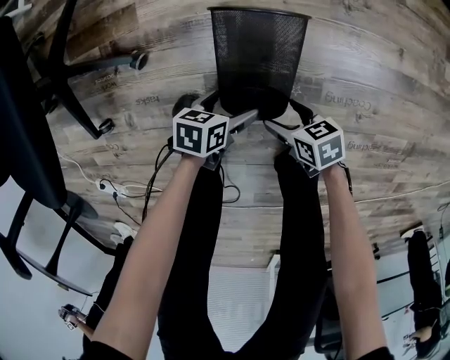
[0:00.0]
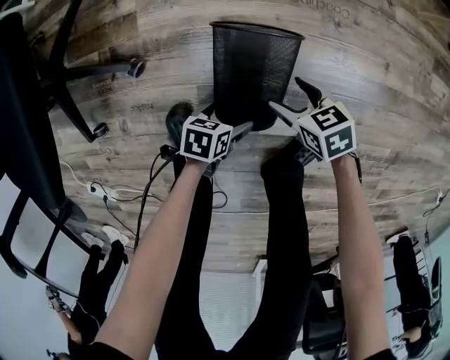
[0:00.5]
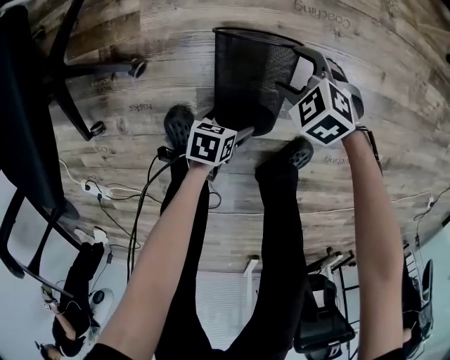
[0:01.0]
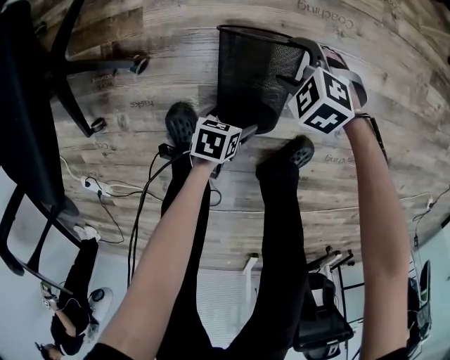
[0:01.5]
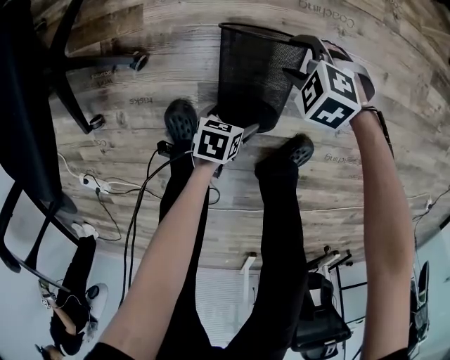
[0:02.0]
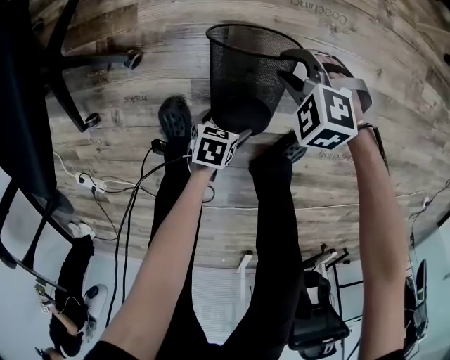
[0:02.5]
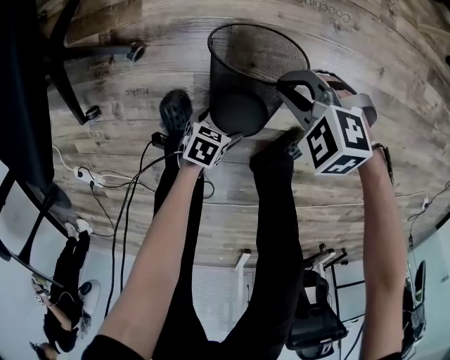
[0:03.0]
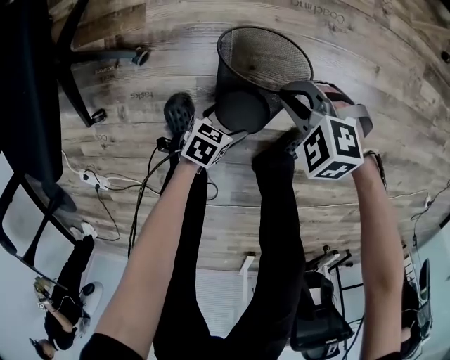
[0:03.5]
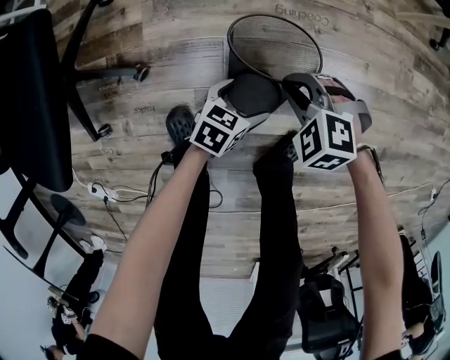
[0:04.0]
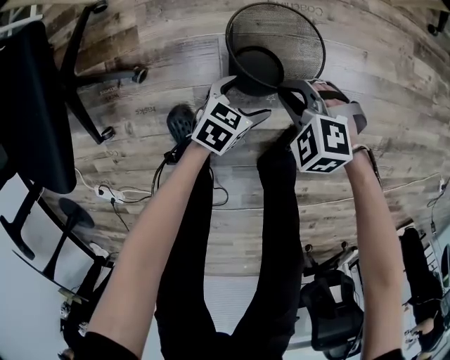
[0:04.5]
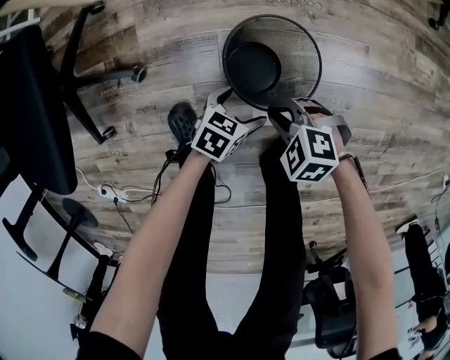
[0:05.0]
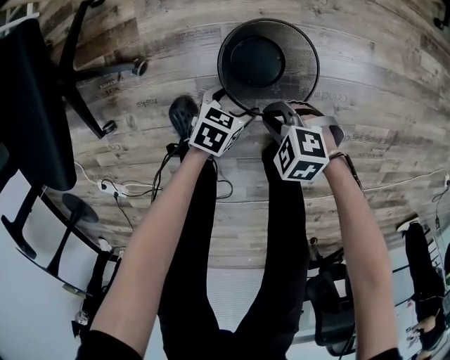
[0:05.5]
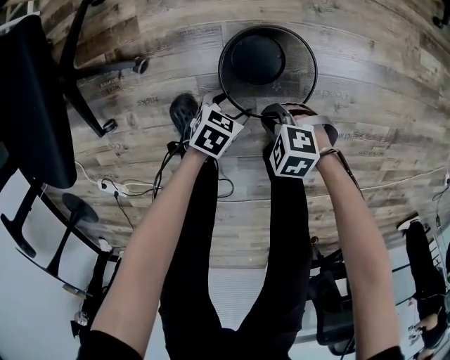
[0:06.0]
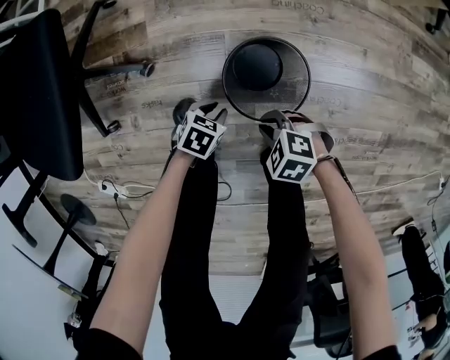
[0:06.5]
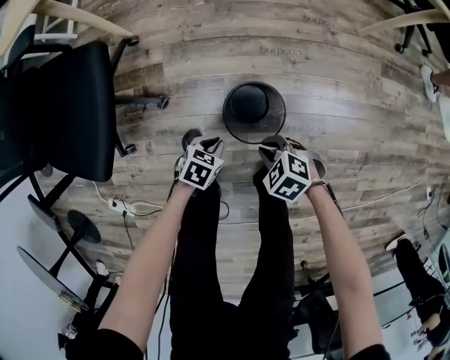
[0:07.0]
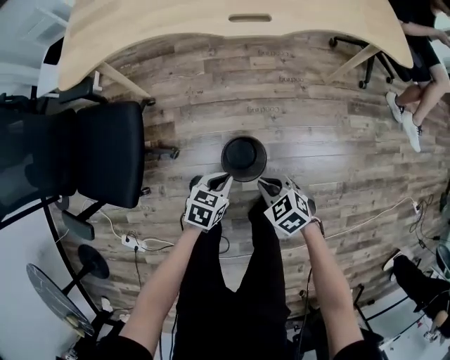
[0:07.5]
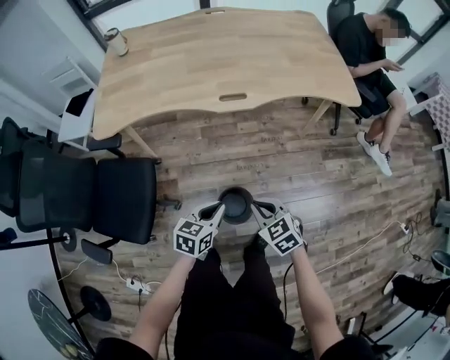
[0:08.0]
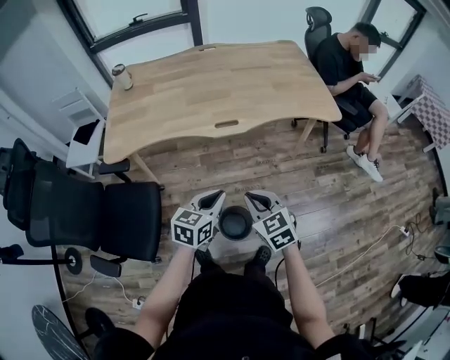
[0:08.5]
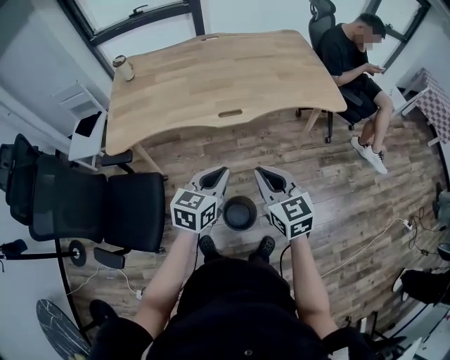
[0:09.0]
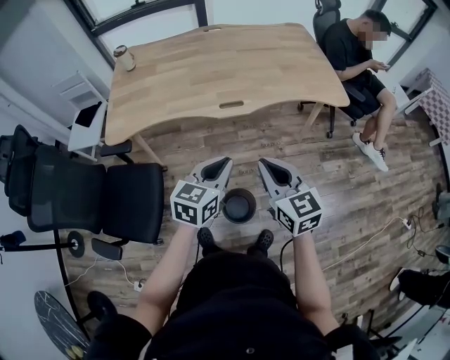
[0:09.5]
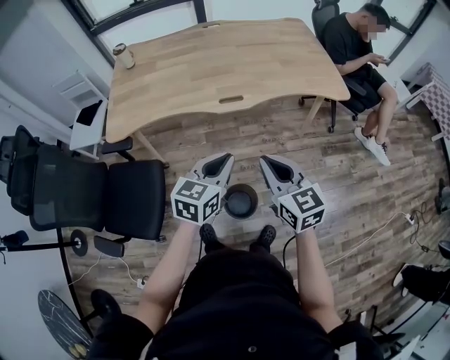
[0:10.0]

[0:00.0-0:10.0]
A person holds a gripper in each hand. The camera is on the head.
0:00.0 to 0:02.0: The right gripper moves roughly 20 cm, and rotates around the line of its fingers by roughly 70 degrees, counterclockwise from behind.
0:02.0 to 0:04.0: The left gripper moves about 15 cm, and turns by some 30 degrees; the right gripper is displaced upward by approximately 10 cm, and closes.
0:04.0 to 0:06.0: The right gripper changes place by roughly 20 cm, and turns by roughly 20 degrees. Meanwhile the left gripper changes place by about 10 cm, and closes its fingers.
0:06.0 to 0:08.0: Both grippers travel together upward, approximately 60 cm. The right gripper swivels roughly 50 degrees. Meanwhile the left gripper rotates approximately 30 degrees, and closes up.
0:08.0 to 0:10.0: The grippers both shift upward by some 20 cm. The right gripper rotates some 30 degrees.

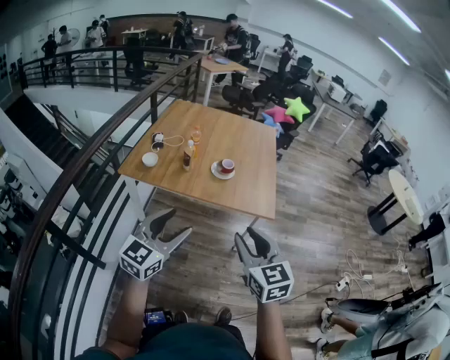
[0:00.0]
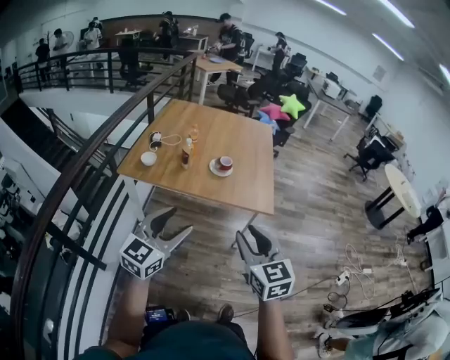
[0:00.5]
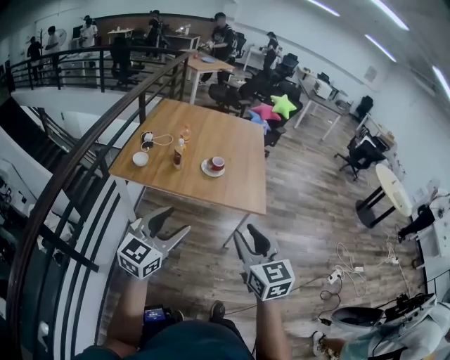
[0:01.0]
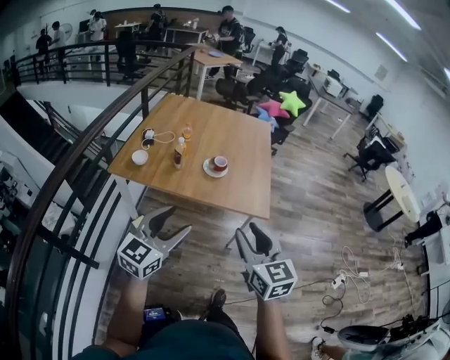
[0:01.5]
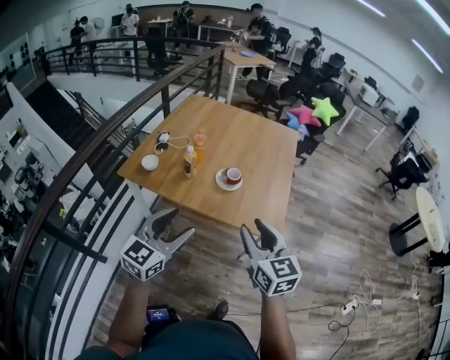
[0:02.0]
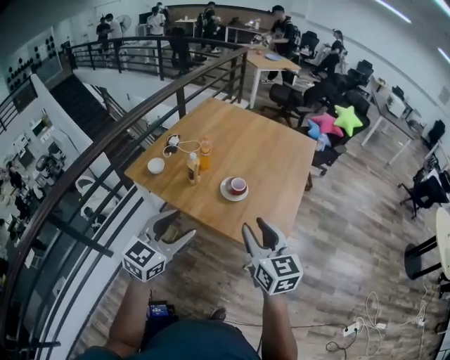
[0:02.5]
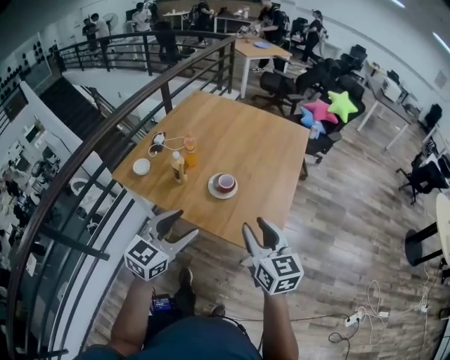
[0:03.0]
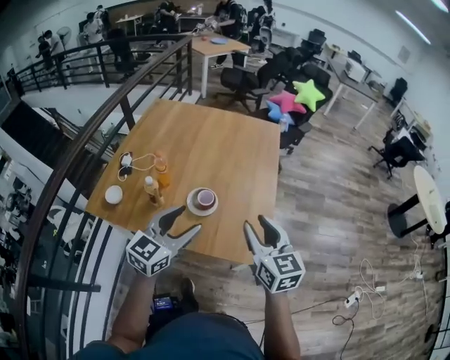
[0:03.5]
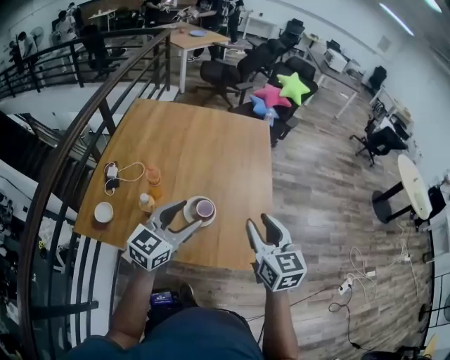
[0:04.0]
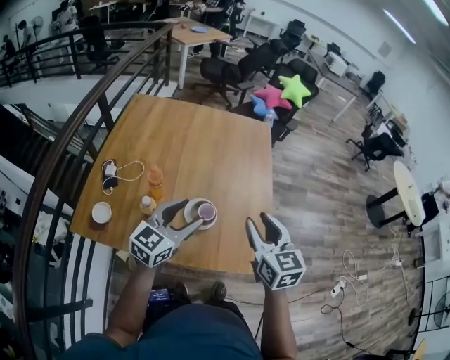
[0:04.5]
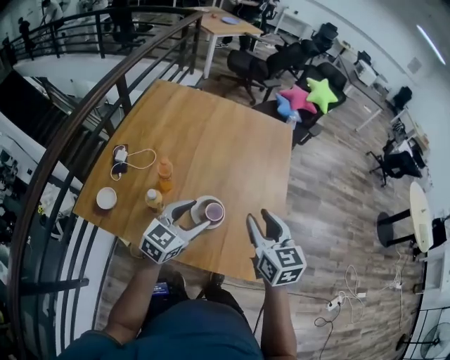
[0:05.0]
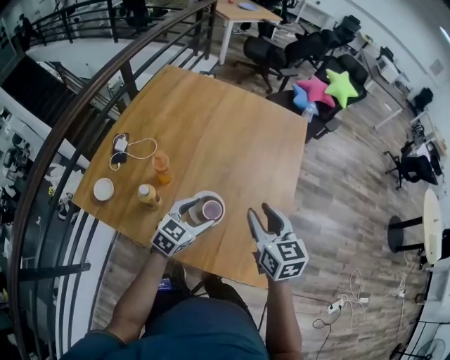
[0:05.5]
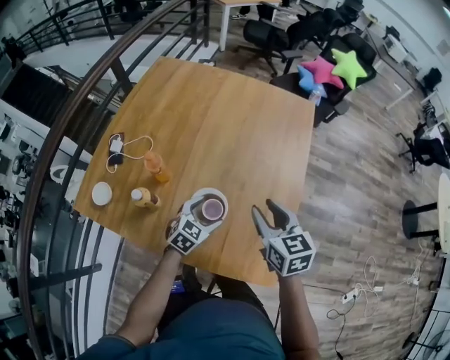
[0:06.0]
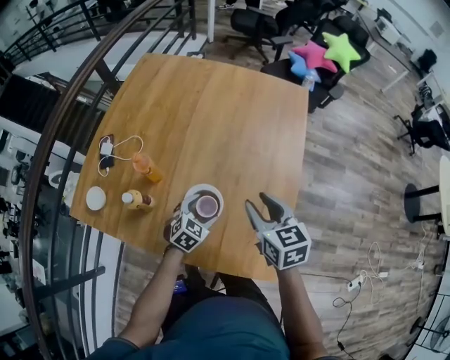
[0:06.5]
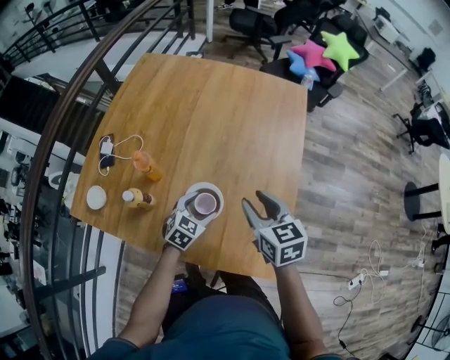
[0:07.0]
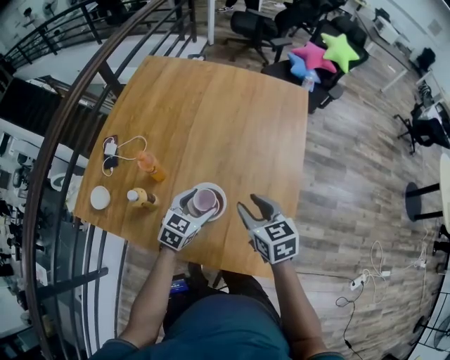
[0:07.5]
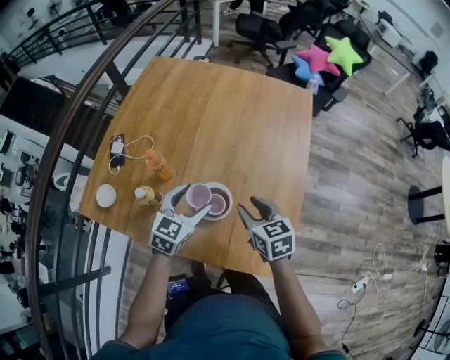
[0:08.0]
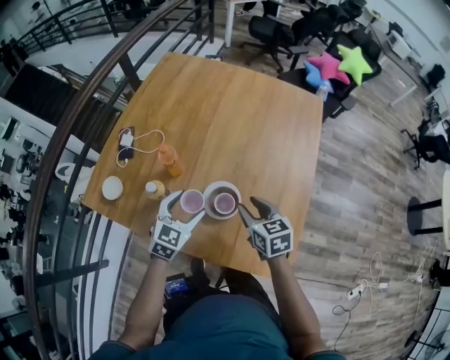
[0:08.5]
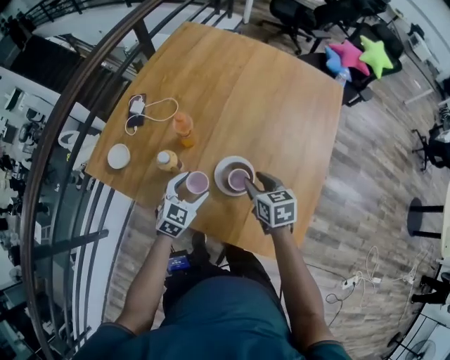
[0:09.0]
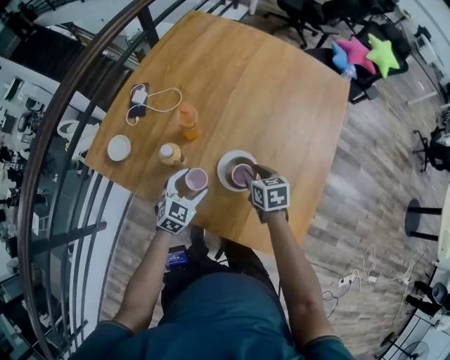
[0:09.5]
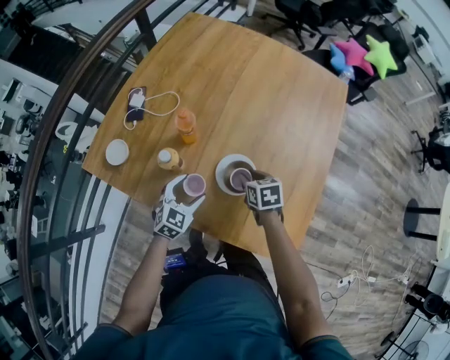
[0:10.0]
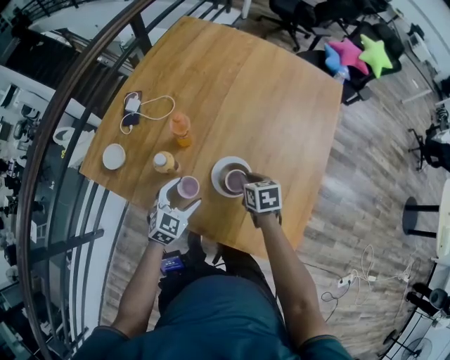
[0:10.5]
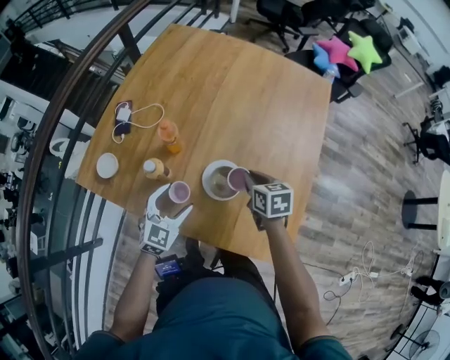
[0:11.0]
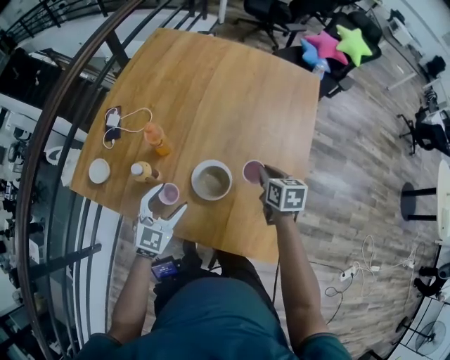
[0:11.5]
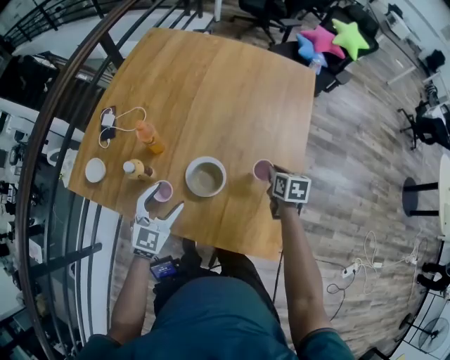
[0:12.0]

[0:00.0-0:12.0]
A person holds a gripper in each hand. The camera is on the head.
0:00.0 to 0:02.0: Both grippers travel together forward, approximately 20 cm.
0:02.0 to 0:04.0: The left gripper moves about 35 cm, while the right gripper shifts by about 30 cm.
0:04.0 to 0:06.0: The left gripper travels downward and forward by some 30 cm, and points its fingers about 30 degrees further downward, while the right gripper moves forward and downward, approximately 20 cm, and rotates approximately 20 degrees.
0:06.0 to 0:08.0: The left gripper goes roughly 10 cm upward and to the left, while the right gripper shifts roughly 5 cm downward.
0:08.0 to 0:10.0: Both grippers travel together downward and to the left, approximately 15 cm.
0:10.0 to 0:12.0: The right gripper shifts some 20 cm to the right, swivels about 20 degrees, and closes. The left gripper is displaced upward by roughly 10 cm.

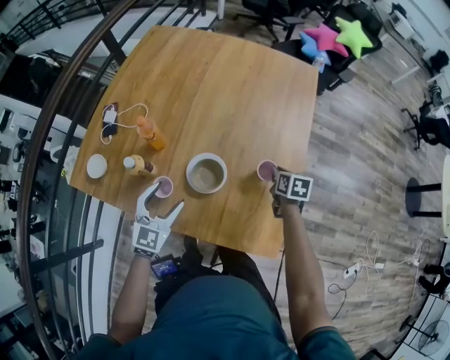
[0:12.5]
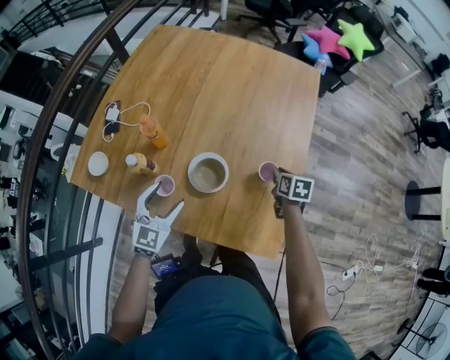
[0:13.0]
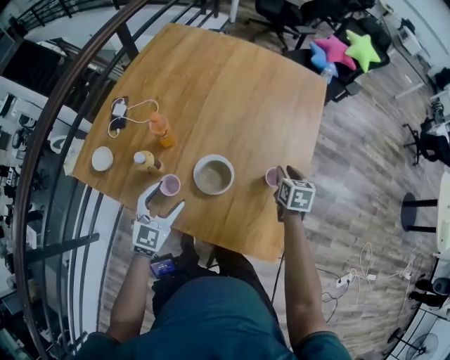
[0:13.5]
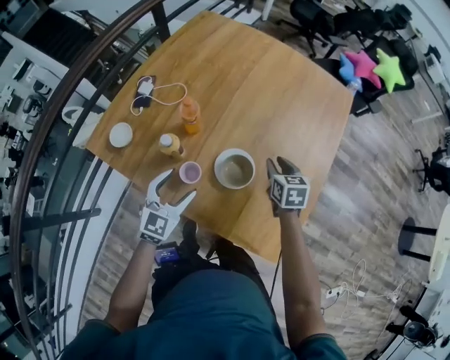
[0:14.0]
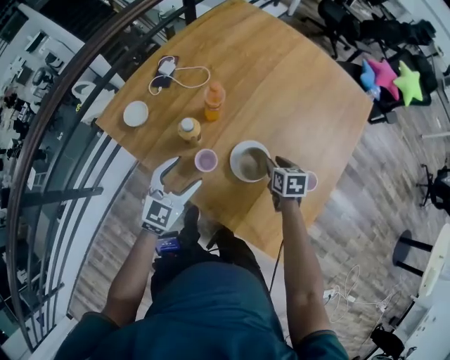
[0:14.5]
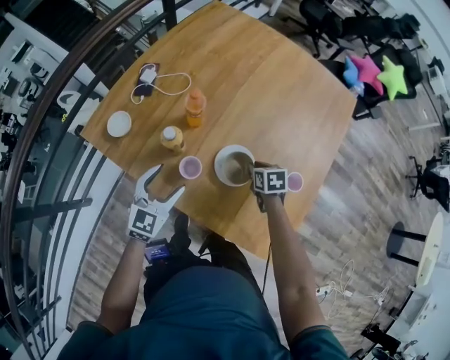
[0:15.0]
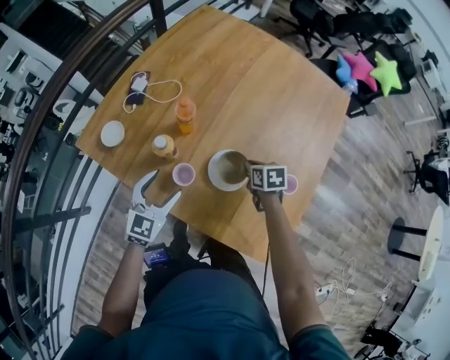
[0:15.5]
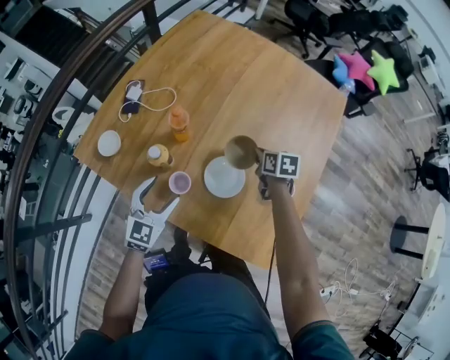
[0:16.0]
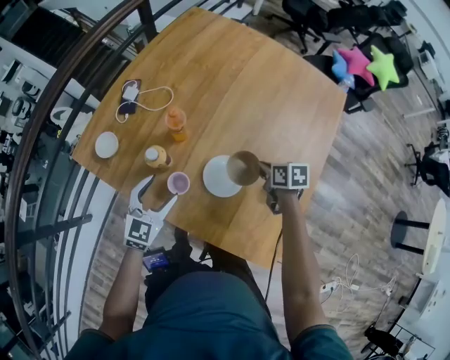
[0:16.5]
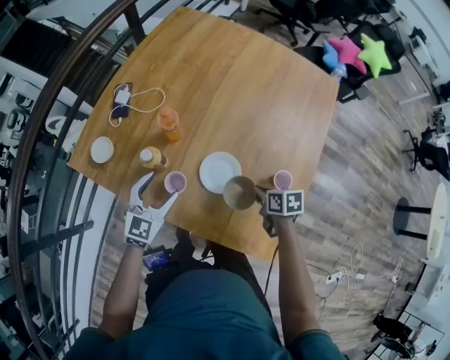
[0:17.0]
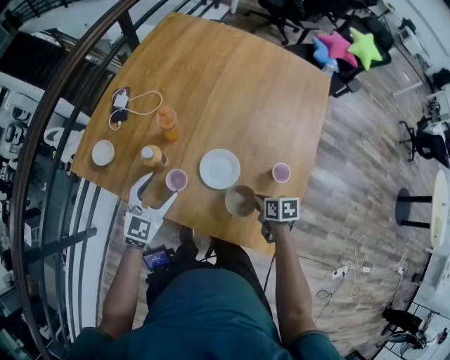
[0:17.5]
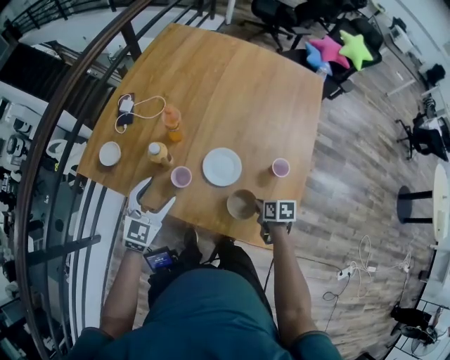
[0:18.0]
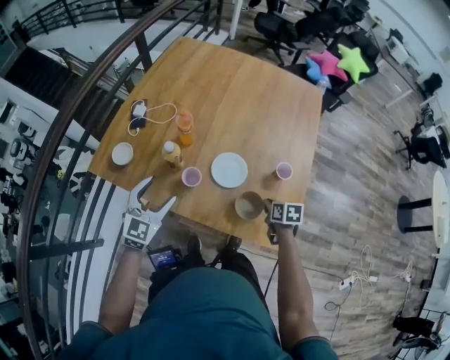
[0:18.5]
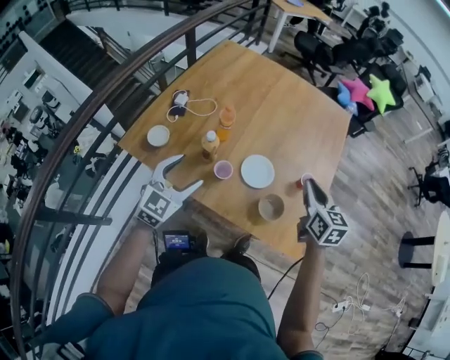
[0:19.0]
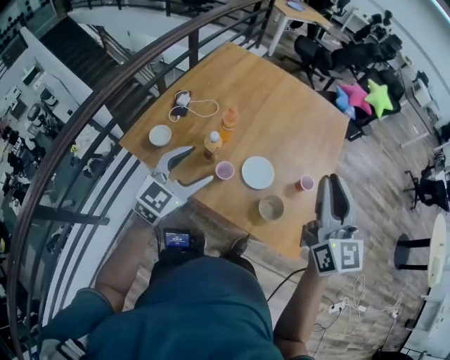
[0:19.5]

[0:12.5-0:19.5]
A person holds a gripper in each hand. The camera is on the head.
0:12.5 to 0:14.5: The left gripper shifts roughly 10 cm to the left, while the right gripper is displaced to the left by approximately 20 cm, and changes its angle by roughly 30 degrees.
0:14.5 to 0:16.0: The right gripper shifts about 10 cm forward, and closes up.
0:16.0 to 0:17.5: The right gripper heads backward, covering about 20 cm.
0:17.5 to 0:19.5: The right gripper is displaced upward by roughly 50 cm, and angles its fingers upward, by some 60 degrees, while the left gripper heads upward and backward, covering some 20 cm.
